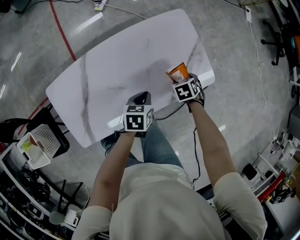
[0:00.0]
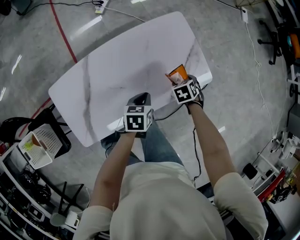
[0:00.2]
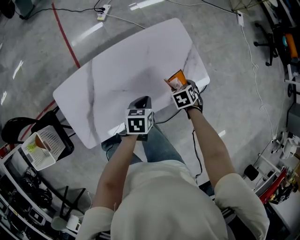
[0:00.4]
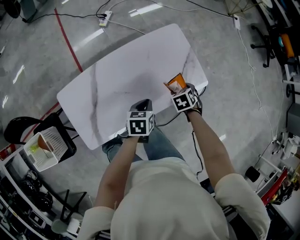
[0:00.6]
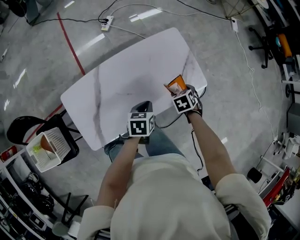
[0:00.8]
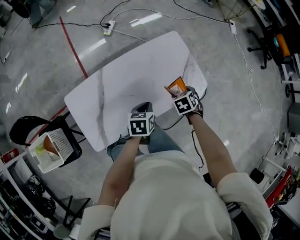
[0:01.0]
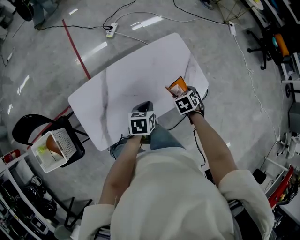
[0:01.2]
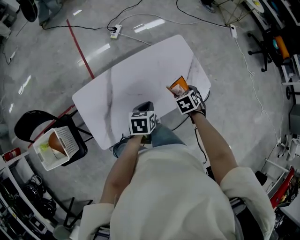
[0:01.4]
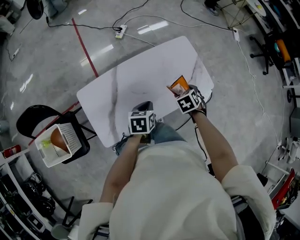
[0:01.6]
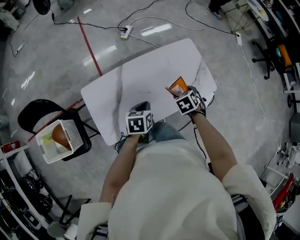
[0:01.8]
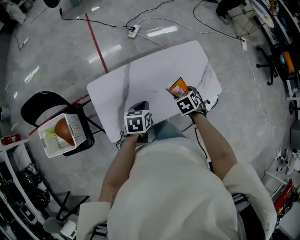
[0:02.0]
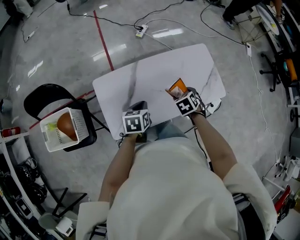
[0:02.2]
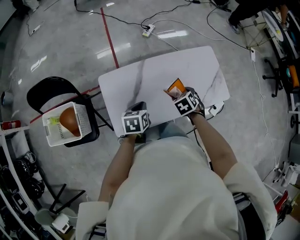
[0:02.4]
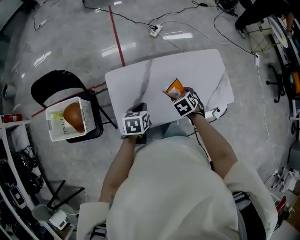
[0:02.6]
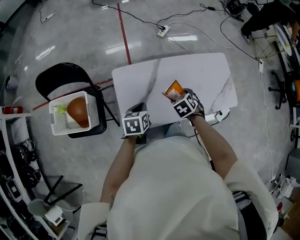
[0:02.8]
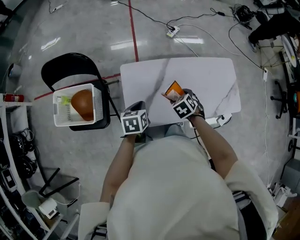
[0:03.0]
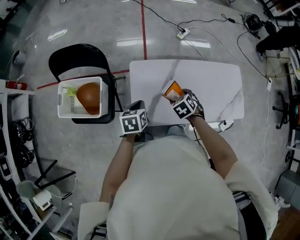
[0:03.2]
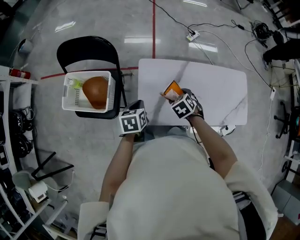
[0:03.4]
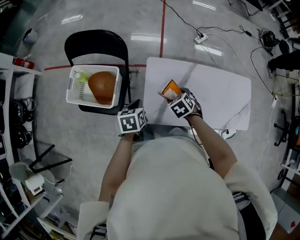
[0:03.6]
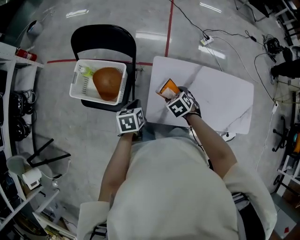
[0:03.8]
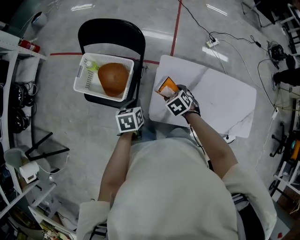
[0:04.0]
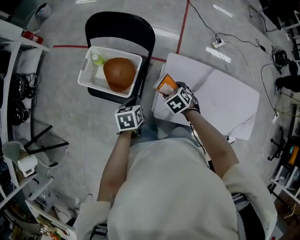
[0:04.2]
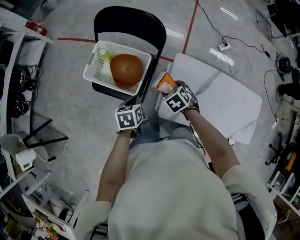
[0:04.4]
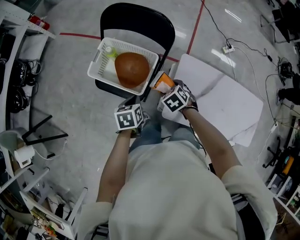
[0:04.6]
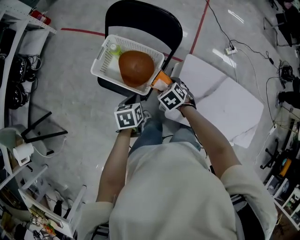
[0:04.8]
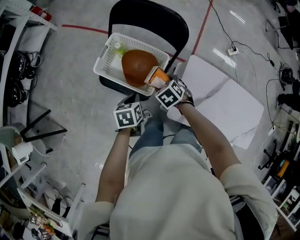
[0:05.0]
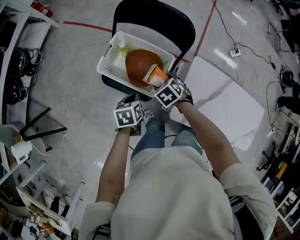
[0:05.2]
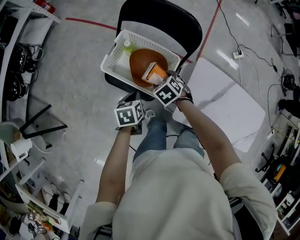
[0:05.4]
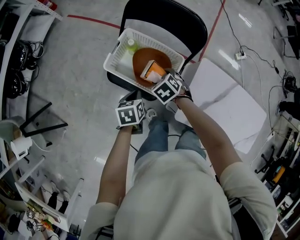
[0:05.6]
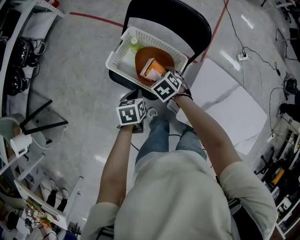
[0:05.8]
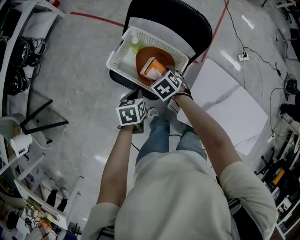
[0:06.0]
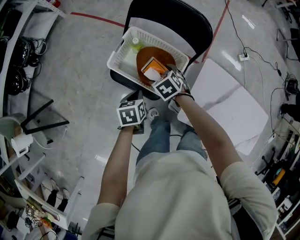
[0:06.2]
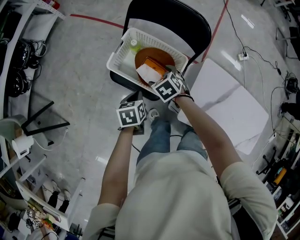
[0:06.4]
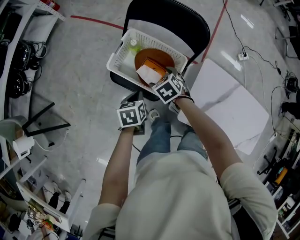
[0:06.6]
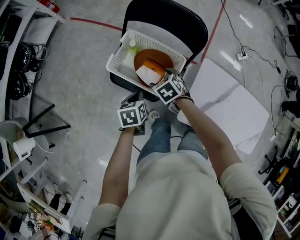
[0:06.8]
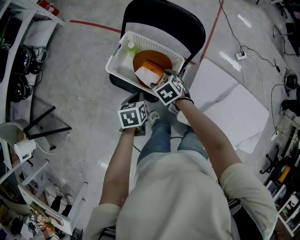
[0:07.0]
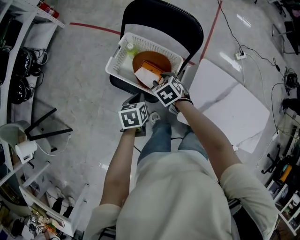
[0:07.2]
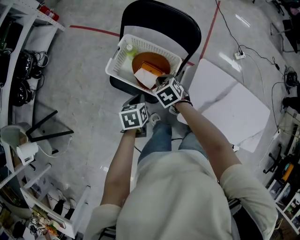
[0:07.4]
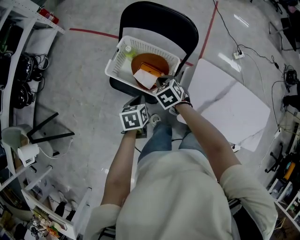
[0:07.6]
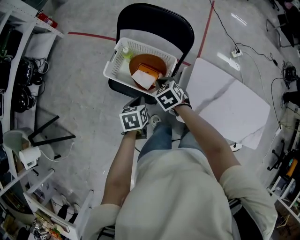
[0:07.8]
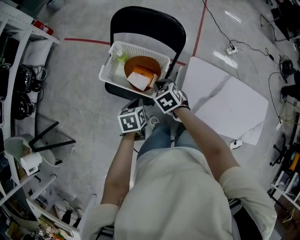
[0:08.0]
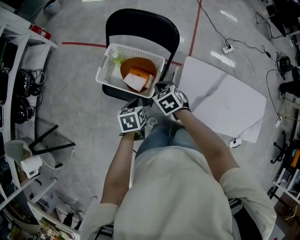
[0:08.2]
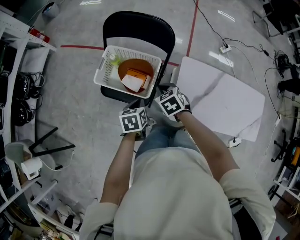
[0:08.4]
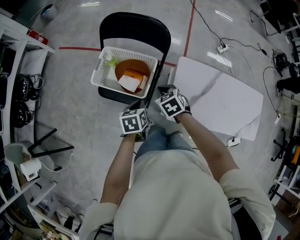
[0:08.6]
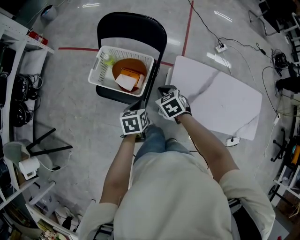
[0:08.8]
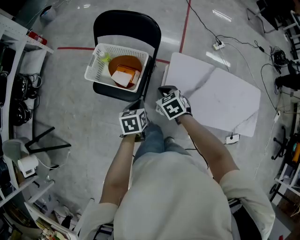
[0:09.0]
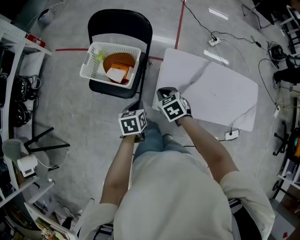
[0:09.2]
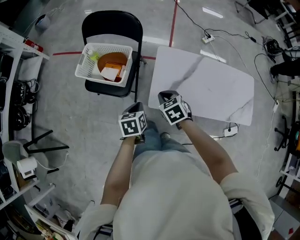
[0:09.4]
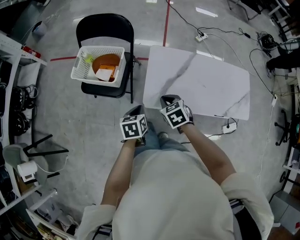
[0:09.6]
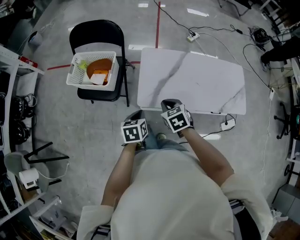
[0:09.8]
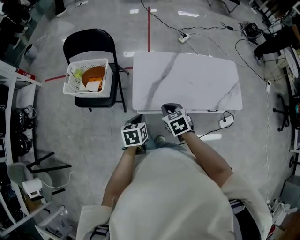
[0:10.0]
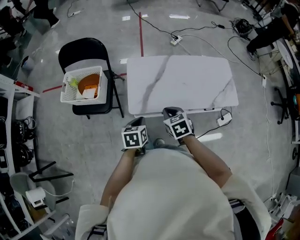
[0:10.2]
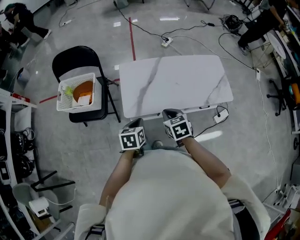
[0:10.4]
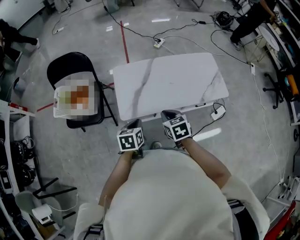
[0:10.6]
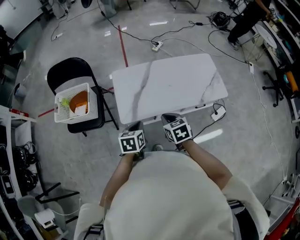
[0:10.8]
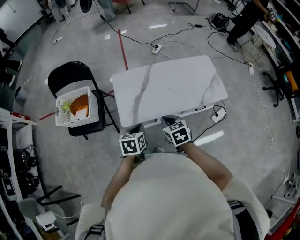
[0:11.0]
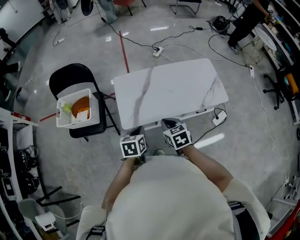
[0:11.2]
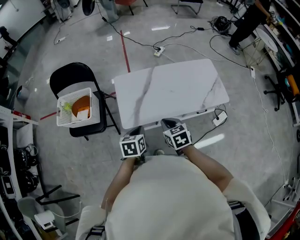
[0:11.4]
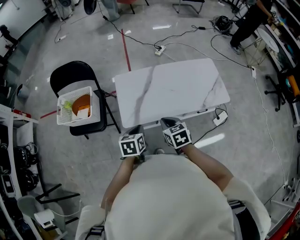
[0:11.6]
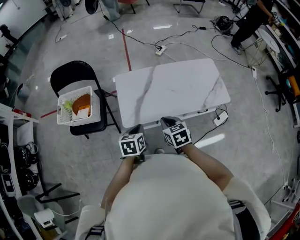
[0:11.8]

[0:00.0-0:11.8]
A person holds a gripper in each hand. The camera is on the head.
0:00.0 to 0:01.4: Both grippers move upward, approximately 15 cm.
0:01.4 to 0:03.0: The left gripper moves approximately 35 cm, and changes its angle by roughly 30 degrees. Meanwhile the right gripper moves about 35 cm, and rotates roughly 30 degrees.
0:03.0 to 0:04.4: The right gripper moves about 35 cm, and changes its angle by about 30 degrees, while the left gripper moves roughly 30 cm, and swivels about 30 degrees.
0:04.4 to 0:06.0: The left gripper goes about 15 cm to the left. Meanwhile the right gripper travels to the left and forward by some 25 cm.
0:06.0 to 0:07.4: The right gripper closes its fingers.
0:07.4 to 0:08.8: The grippers both shift to the right and backward by some 15 cm.
0:08.8 to 0:10.4: The two grippers go about 35 cm to the right and backward. The right gripper swivels about 30 degrees. The left gripper rotates approximately 30 degrees.
0:10.4 to 0:11.8: The grippers stay close to where they were, moving slightly.

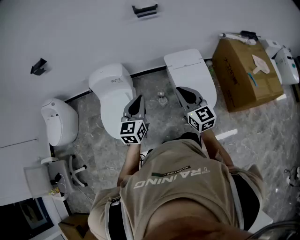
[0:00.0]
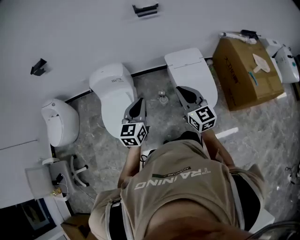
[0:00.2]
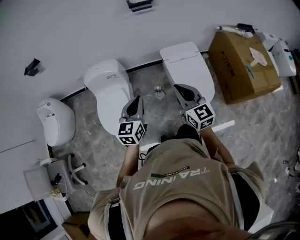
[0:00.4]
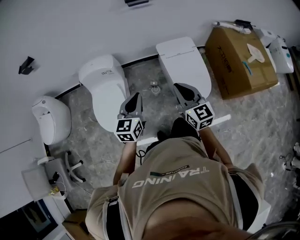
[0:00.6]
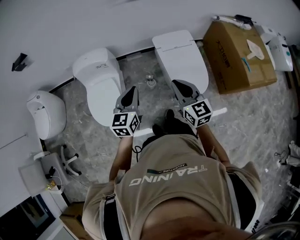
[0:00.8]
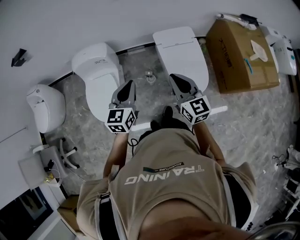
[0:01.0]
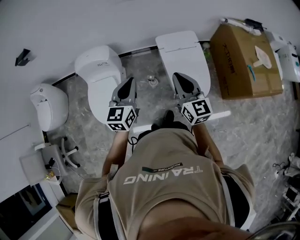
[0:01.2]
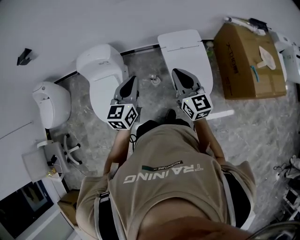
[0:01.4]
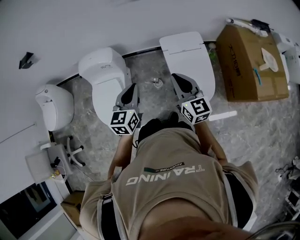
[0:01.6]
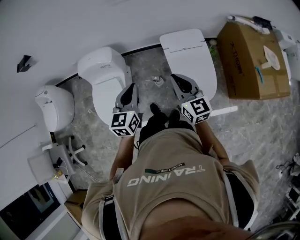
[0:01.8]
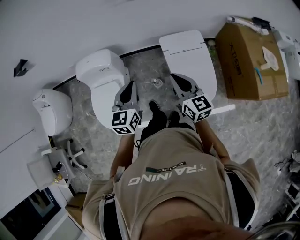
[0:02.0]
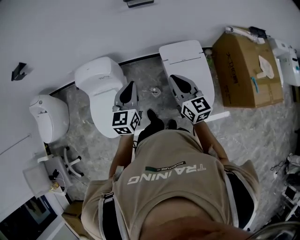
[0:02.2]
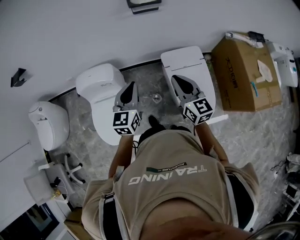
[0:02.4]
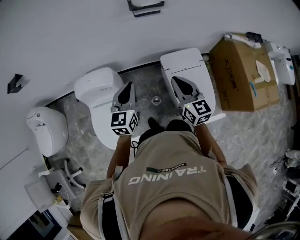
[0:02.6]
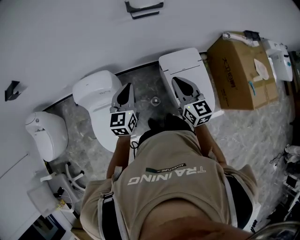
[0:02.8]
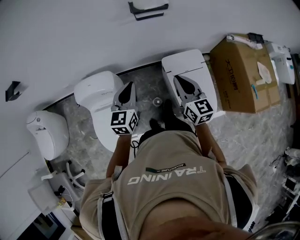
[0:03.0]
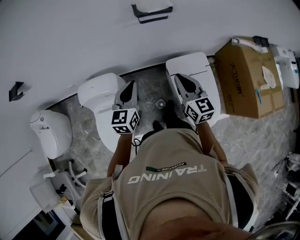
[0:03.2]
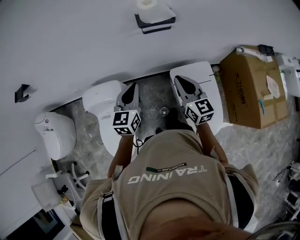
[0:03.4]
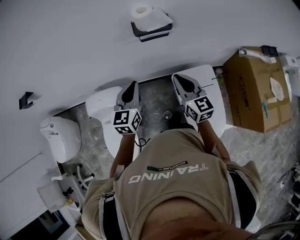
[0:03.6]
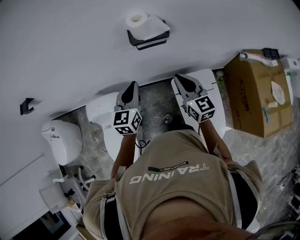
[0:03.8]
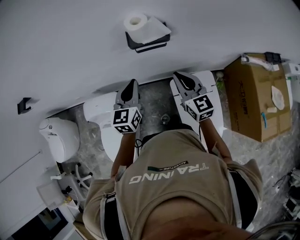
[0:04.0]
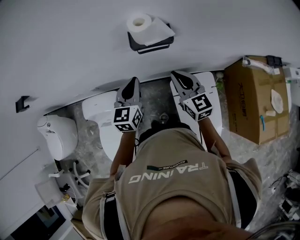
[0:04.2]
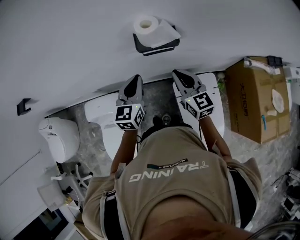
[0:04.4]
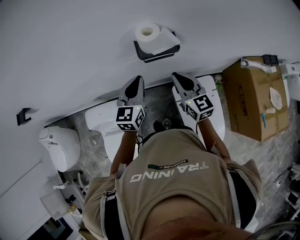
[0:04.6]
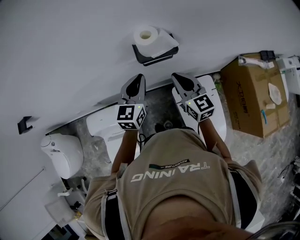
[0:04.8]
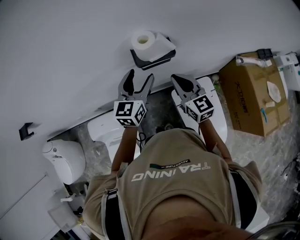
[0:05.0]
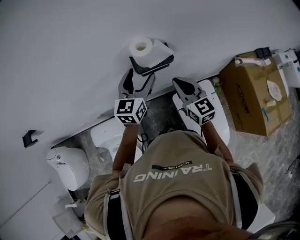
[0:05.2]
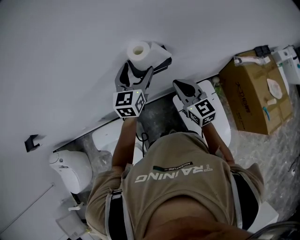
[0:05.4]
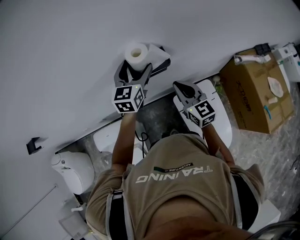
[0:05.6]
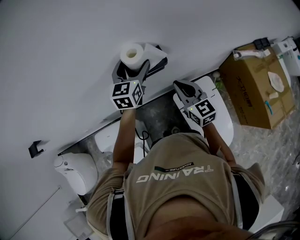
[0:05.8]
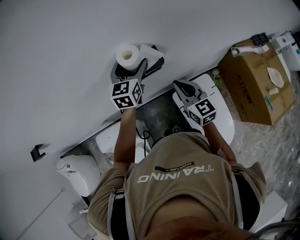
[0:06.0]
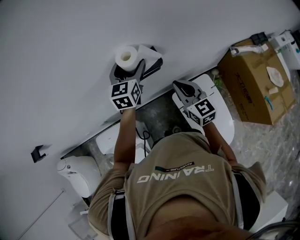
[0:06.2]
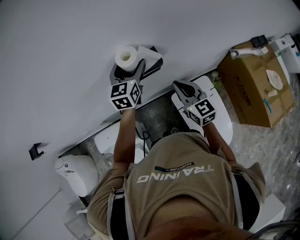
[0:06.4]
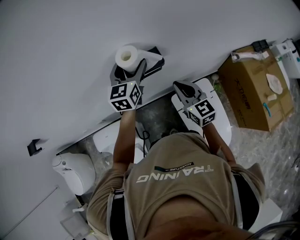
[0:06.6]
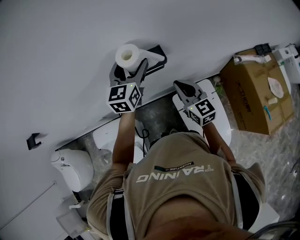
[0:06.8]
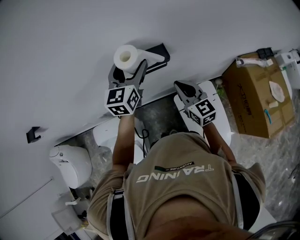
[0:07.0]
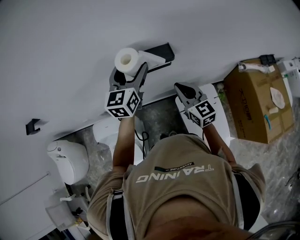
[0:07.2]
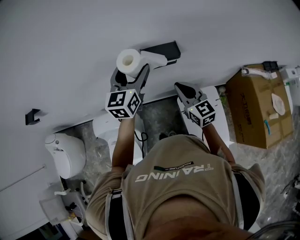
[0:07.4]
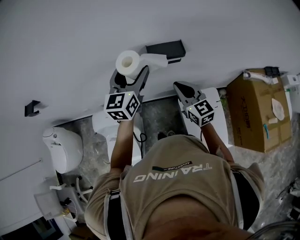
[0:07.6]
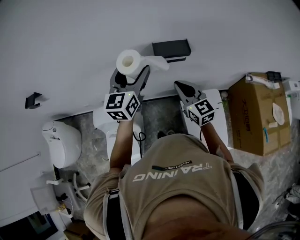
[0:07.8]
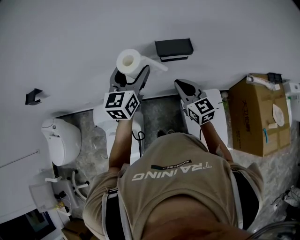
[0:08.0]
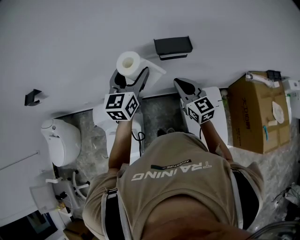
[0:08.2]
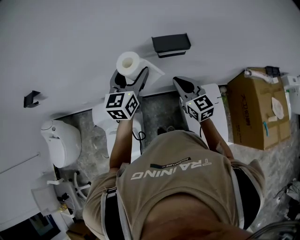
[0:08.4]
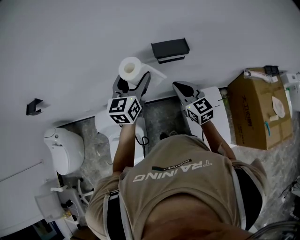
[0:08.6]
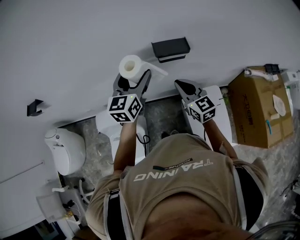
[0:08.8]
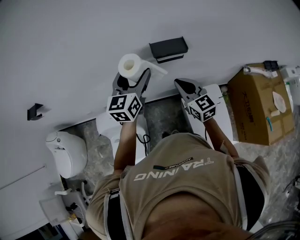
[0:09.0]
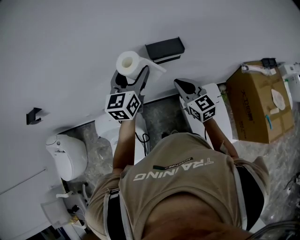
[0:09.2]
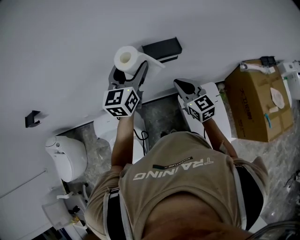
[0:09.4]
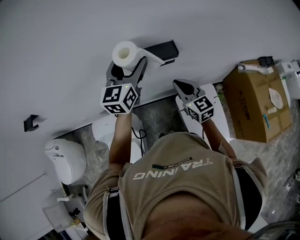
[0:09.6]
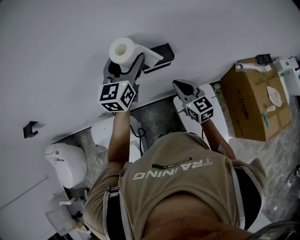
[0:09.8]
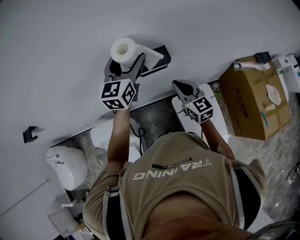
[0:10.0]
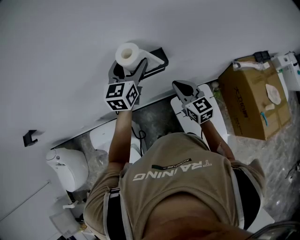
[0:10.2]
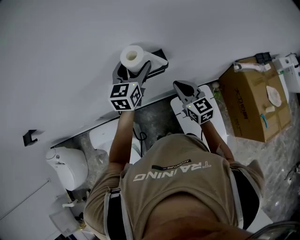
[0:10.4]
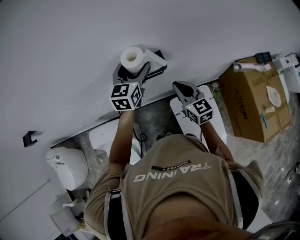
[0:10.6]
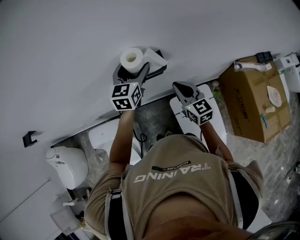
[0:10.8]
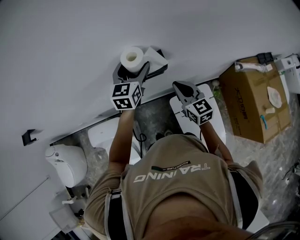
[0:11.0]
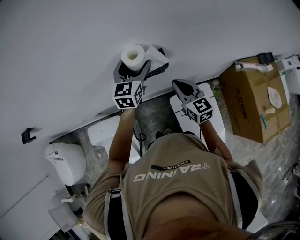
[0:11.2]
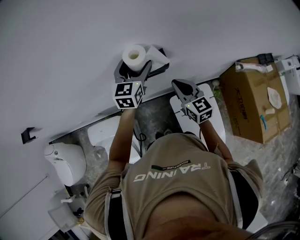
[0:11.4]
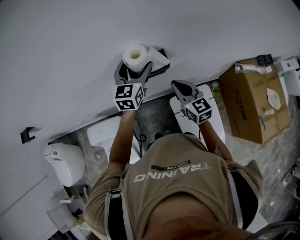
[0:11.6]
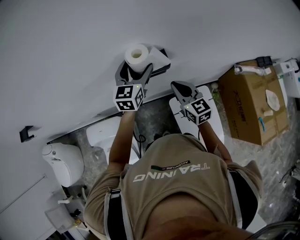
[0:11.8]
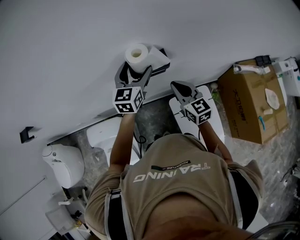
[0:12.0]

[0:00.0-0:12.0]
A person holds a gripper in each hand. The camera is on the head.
0:00.0 to 0:01.6: Both grippers travel together forward and to the right, some 10 cm.
0:01.6 to 0:03.0: The two grippers go some 20 cm forward.
0:03.0 to 0:04.4: The two grippers go approximately 20 cm forward.
0:04.4 to 0:06.0: The left gripper travels forward and to the right by some 20 cm, and opens.
0:06.0 to 0:07.6: The right gripper is displaced to the left and backward by some 10 cm. The left gripper moves backward, to the left and upward, about 20 cm.
0:07.6 to 0:09.0: The grippers make only small movements.
0:09.0 to 0:10.4: The right gripper travels to the right and forward by approximately 10 cm. Meanwhile the left gripper travels forward and to the right by about 20 cm.
0:10.4 to 0:12.0: The grippers stay close to where they were, moving slightly.
